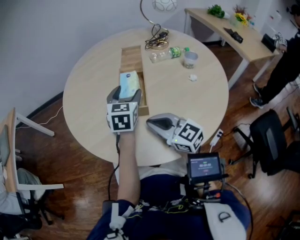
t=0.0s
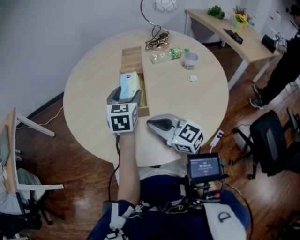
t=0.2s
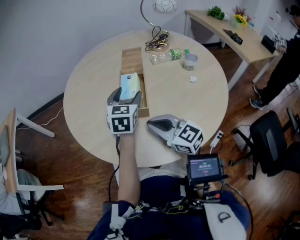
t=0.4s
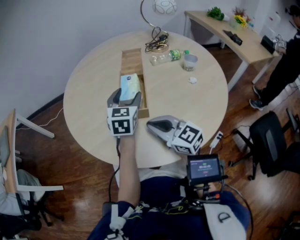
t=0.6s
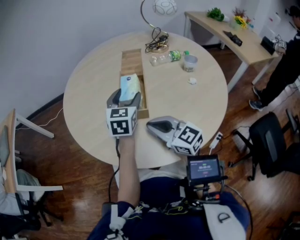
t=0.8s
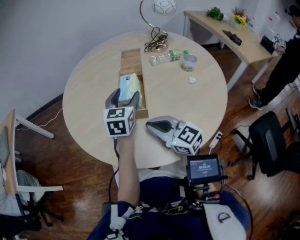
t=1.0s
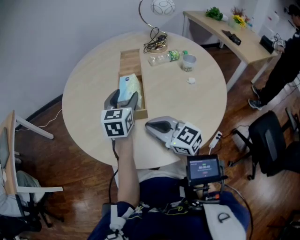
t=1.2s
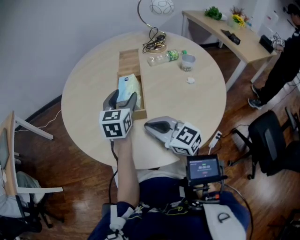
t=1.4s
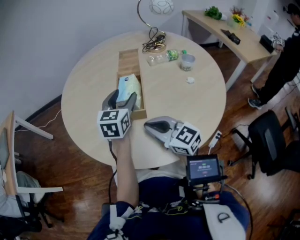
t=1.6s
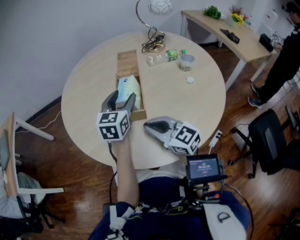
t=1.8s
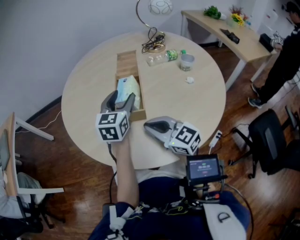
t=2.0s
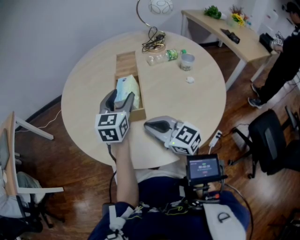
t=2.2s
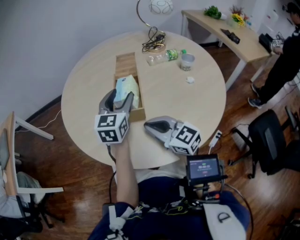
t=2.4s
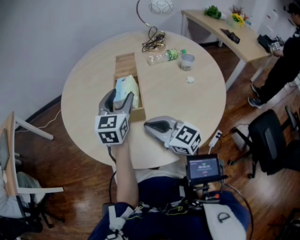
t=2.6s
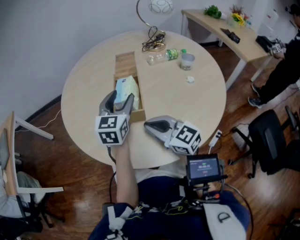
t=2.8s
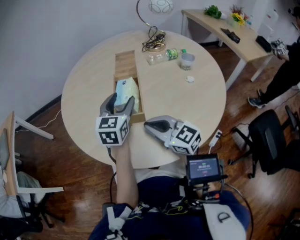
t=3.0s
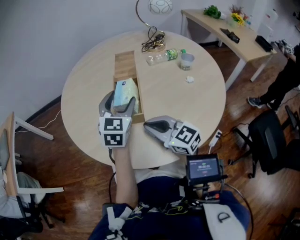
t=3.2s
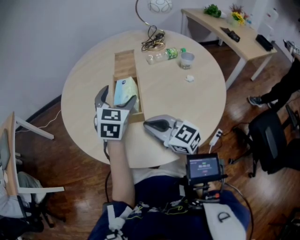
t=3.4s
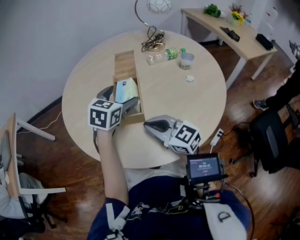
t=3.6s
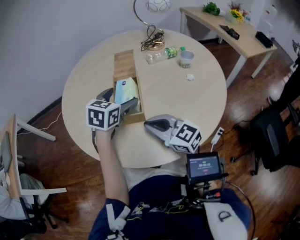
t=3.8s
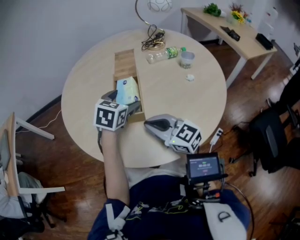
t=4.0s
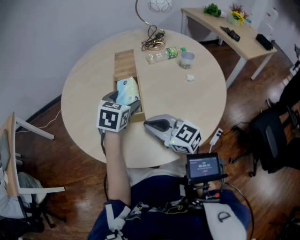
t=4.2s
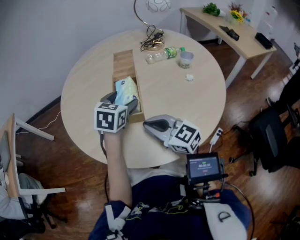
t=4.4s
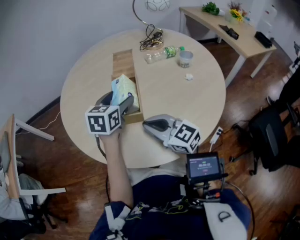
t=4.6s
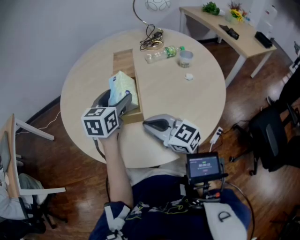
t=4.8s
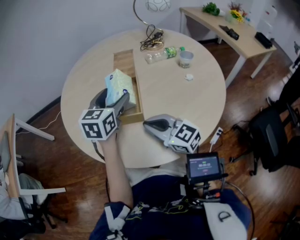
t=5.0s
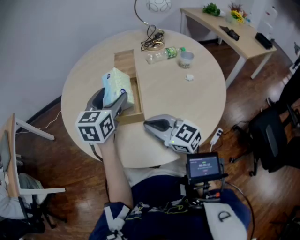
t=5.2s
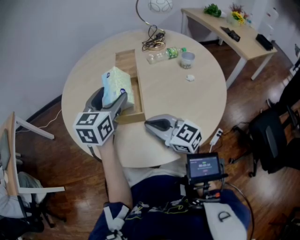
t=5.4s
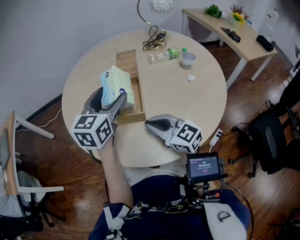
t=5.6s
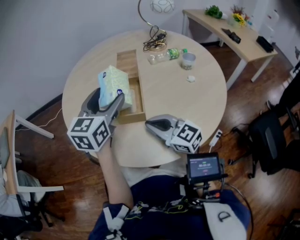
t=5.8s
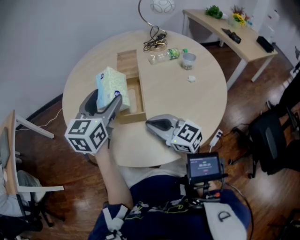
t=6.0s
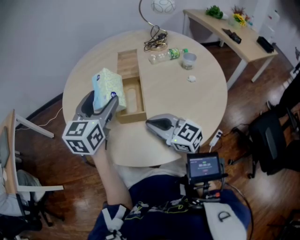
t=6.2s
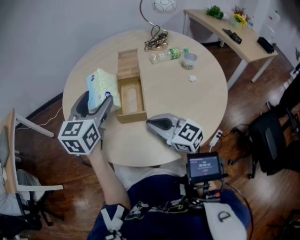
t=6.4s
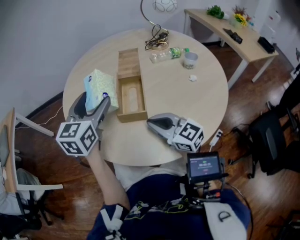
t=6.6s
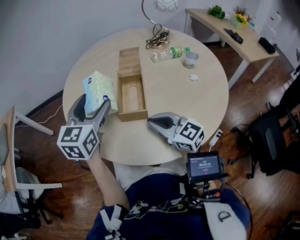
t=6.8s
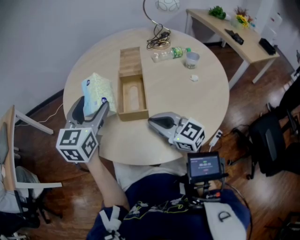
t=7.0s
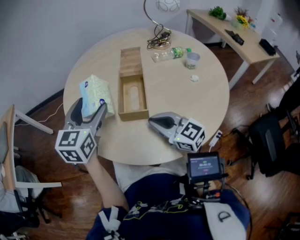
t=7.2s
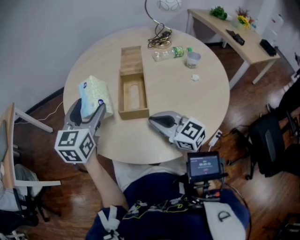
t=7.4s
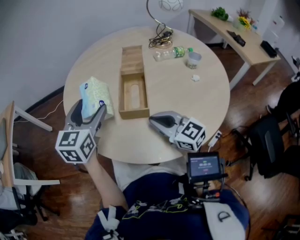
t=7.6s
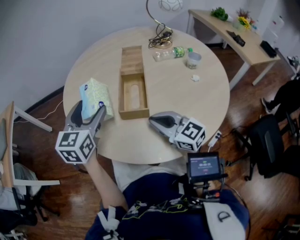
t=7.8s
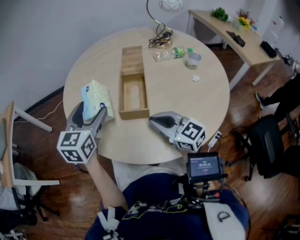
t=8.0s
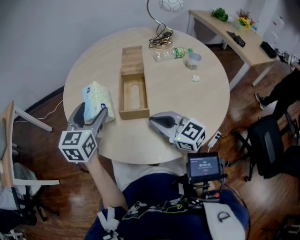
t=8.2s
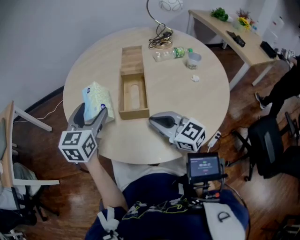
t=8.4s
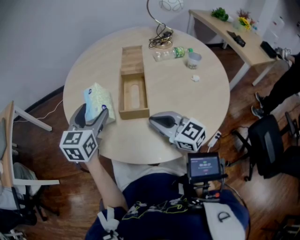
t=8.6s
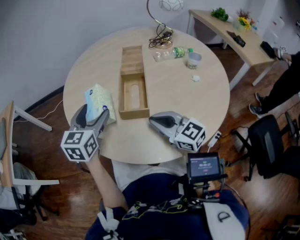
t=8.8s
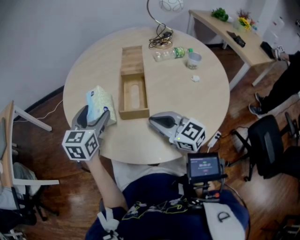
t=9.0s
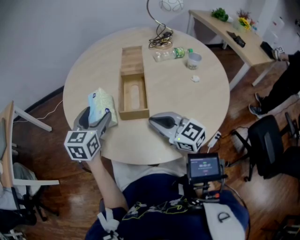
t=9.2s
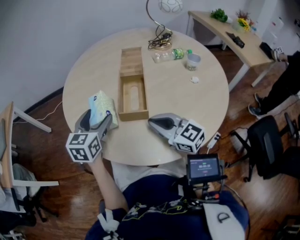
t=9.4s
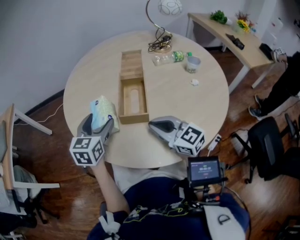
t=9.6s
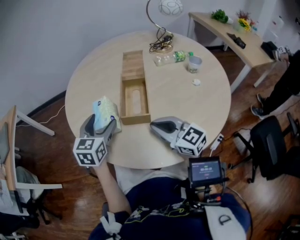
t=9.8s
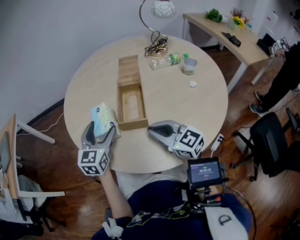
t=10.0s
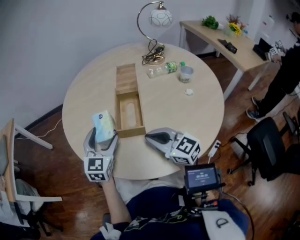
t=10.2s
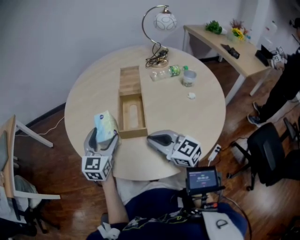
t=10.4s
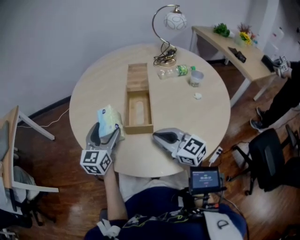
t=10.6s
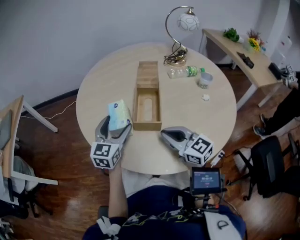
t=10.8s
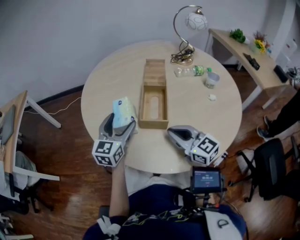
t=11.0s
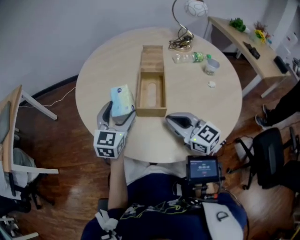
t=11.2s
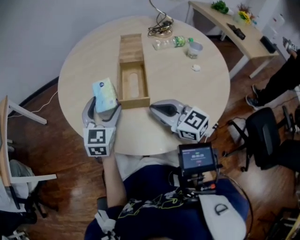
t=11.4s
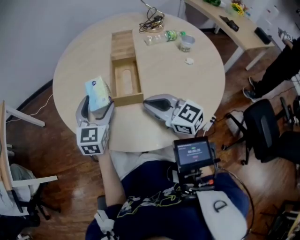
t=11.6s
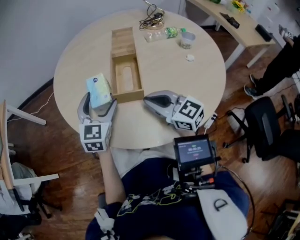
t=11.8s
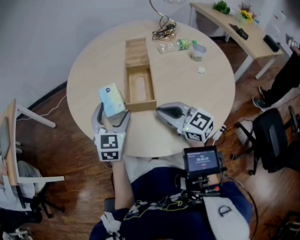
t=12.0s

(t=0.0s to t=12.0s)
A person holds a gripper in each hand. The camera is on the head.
t=0.0s - t=3.0s: The grippers make only small movements.
t=3.0s - t=4.4s: The left gripper turns by roughly 20 degrees.
t=4.4s - t=6.0s: The left gripper goes approximately 15 cm upward and to the left, and swivels roughly 20 degrees.
t=6.0s - t=7.6s: The left gripper heads to the left, covering about 10 cm.
t=7.6s - t=9.0s: The left gripper shifts some 5 cm downward.
t=9.0s - t=10.4s: The grippers stay close to where they were, moving slightly.
t=10.4s - t=12.0s: There are only small adjustments of the grippers.

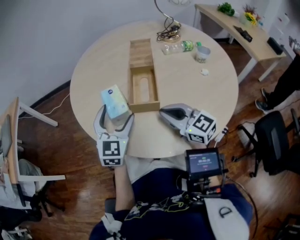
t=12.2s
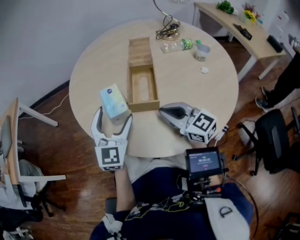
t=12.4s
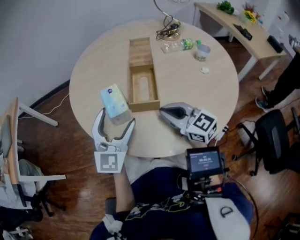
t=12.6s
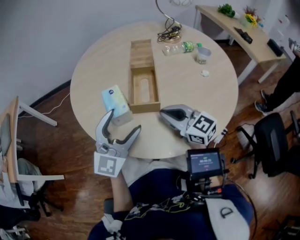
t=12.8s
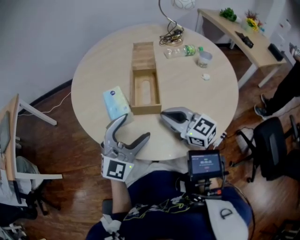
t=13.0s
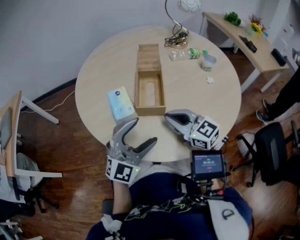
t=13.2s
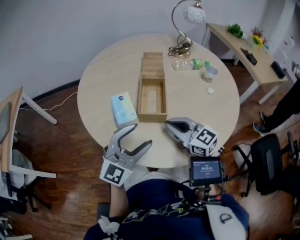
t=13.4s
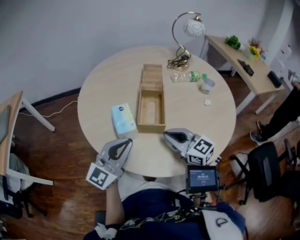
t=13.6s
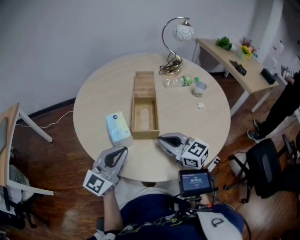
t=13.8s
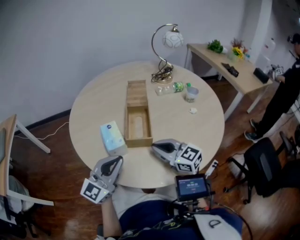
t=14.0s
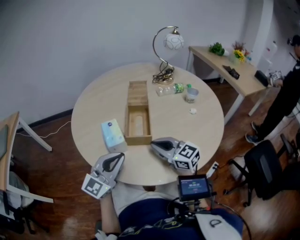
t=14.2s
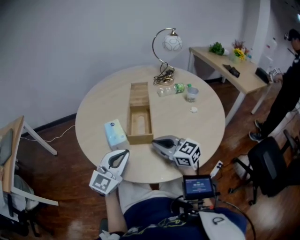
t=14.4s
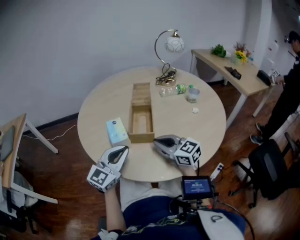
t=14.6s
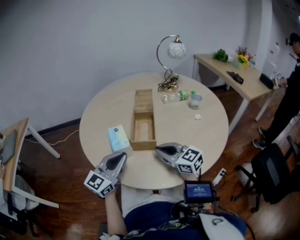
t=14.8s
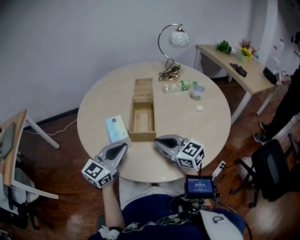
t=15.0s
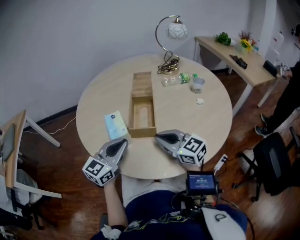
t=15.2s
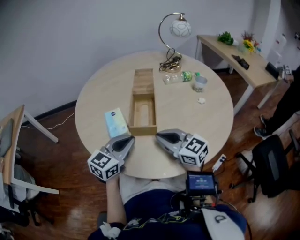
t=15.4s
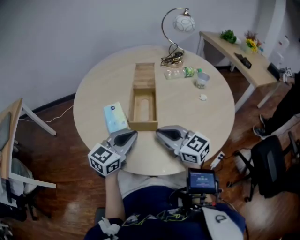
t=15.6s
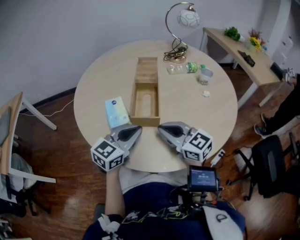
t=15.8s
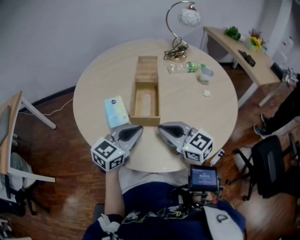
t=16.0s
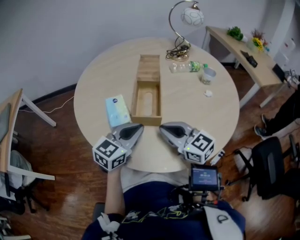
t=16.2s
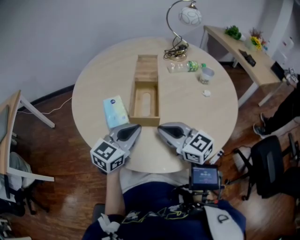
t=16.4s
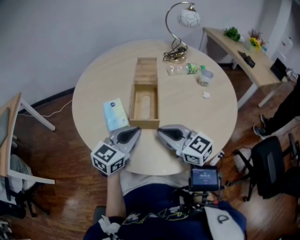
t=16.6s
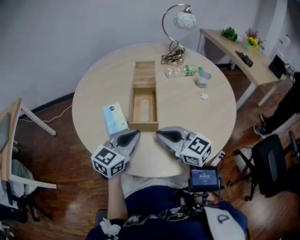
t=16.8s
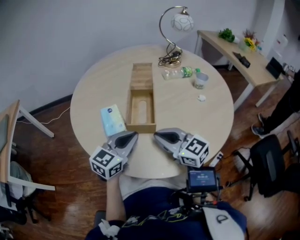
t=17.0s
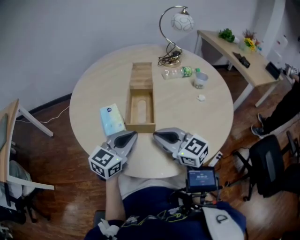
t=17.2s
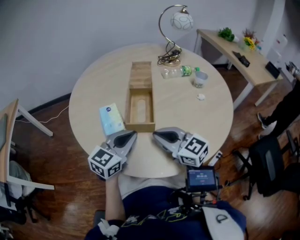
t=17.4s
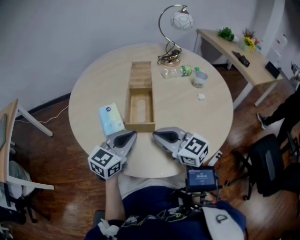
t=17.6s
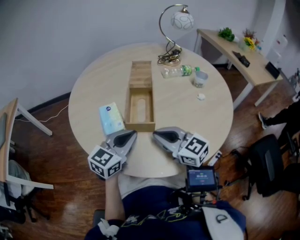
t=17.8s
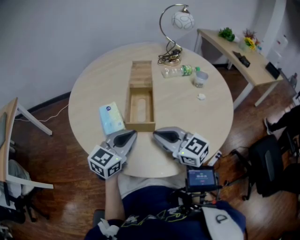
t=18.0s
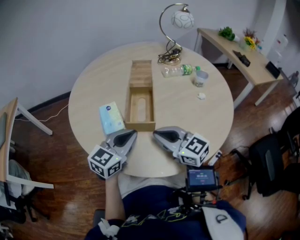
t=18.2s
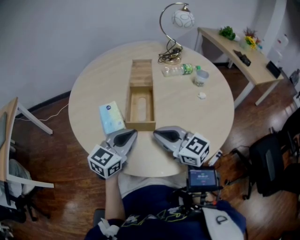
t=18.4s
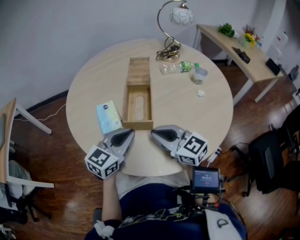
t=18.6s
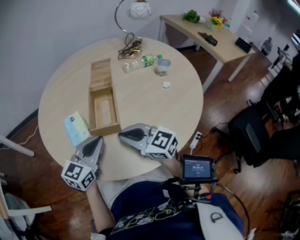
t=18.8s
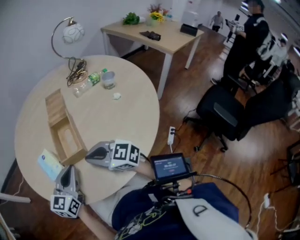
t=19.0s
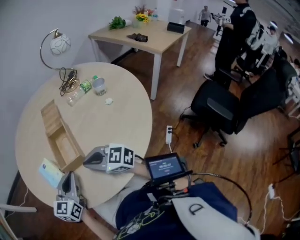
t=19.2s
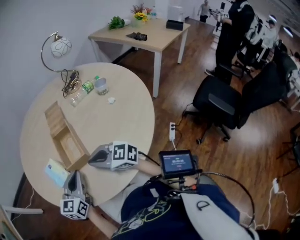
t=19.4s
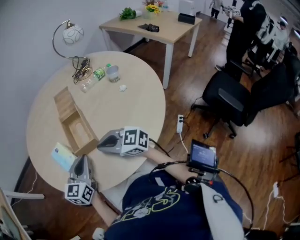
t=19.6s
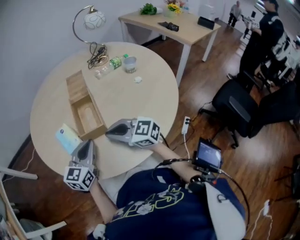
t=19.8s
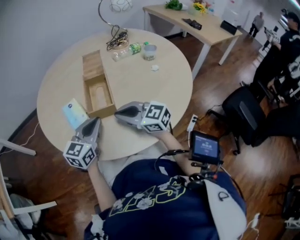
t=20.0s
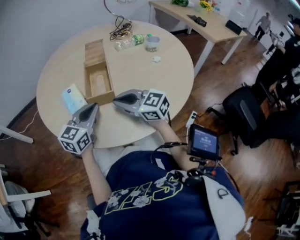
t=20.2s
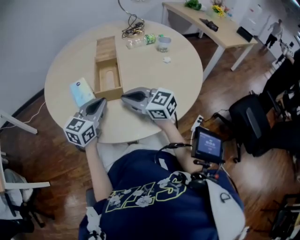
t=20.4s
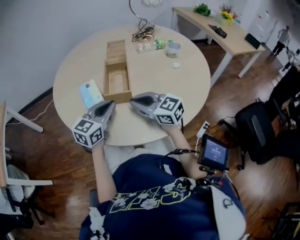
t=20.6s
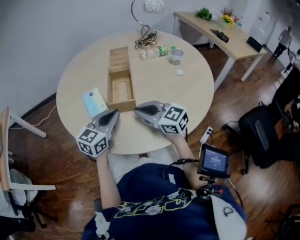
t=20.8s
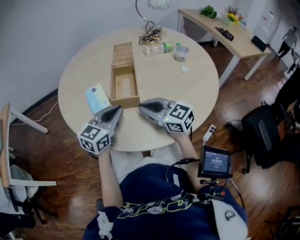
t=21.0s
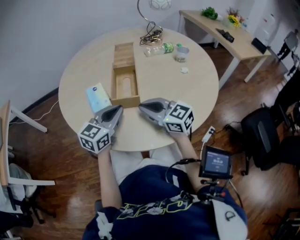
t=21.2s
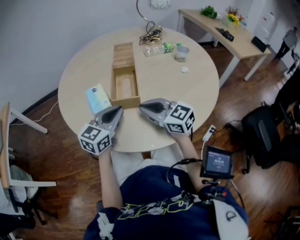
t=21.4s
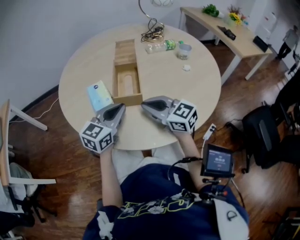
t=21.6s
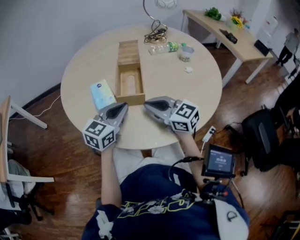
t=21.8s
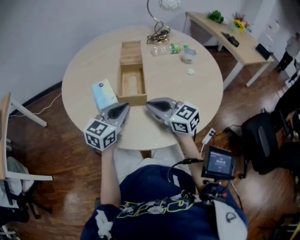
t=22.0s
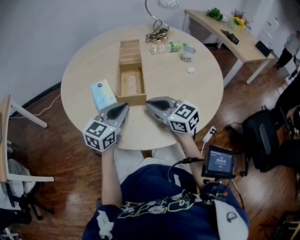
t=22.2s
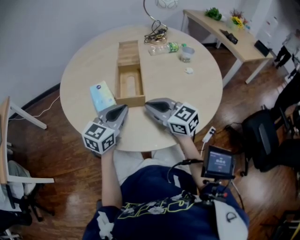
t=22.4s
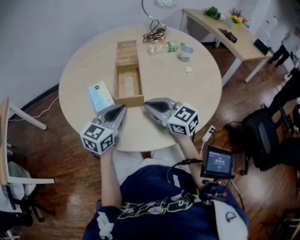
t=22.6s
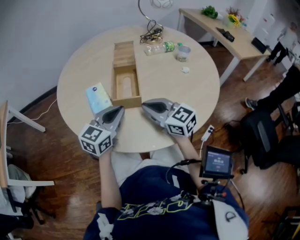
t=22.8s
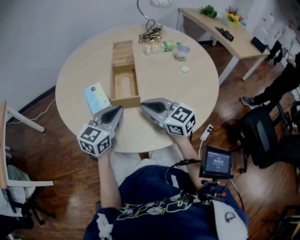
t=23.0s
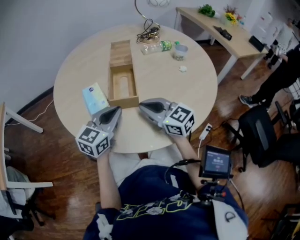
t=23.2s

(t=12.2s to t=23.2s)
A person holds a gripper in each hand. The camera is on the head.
t=12.2s - t=13.8s: The left gripper travels backward by roughly 10 cm, changes its angle by about 40 degrees, and closes.
t=13.8s - t=15.4s: The left gripper moves downward, about 5 cm, and swivels approximately 20 degrees.
t=15.4s - t=17.0s: The grippers stay close to where they were, moving slightly.
t=17.0s - t=18.4s: Both grippers stay about where they are.
t=18.4s - t=20.0s: The grippers move only a little.
t=20.0s - t=21.6s: Neither gripper changes place.
t=21.6s - t=23.2s: The grippers make only small movements.

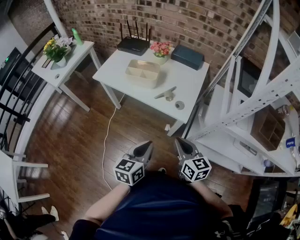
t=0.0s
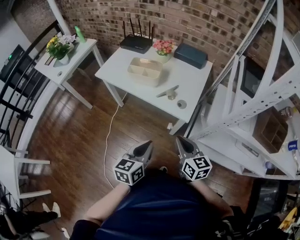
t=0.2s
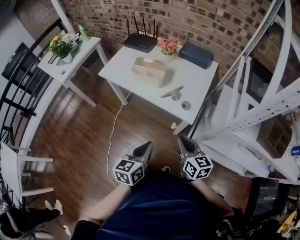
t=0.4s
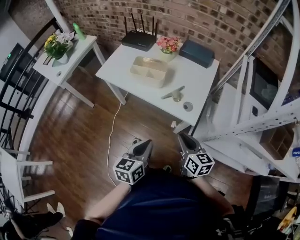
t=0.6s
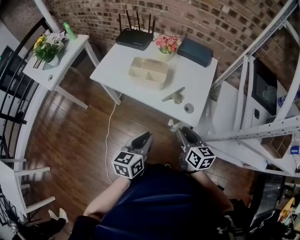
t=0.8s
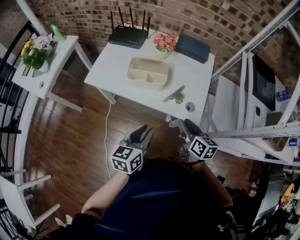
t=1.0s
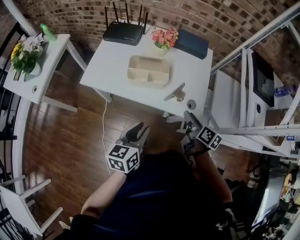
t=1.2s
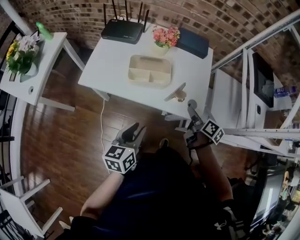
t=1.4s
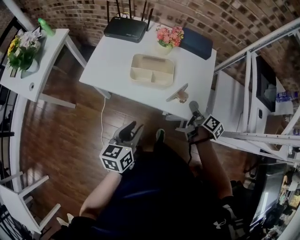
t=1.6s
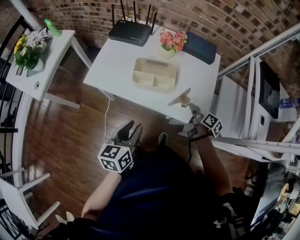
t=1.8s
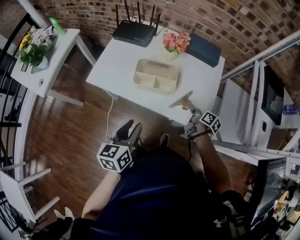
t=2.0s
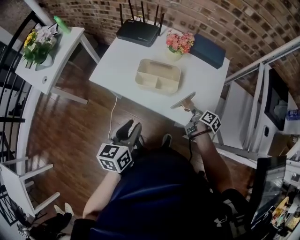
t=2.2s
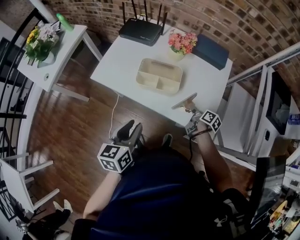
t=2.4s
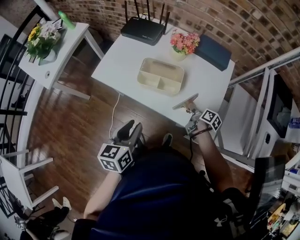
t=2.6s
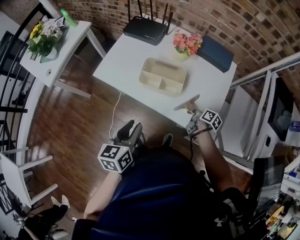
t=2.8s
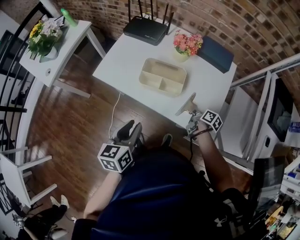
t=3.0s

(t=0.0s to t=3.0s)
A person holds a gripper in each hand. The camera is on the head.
t=0.0s - t=1.6s: The right gripper heads forward and downward, covering some 30 cm, rotates around the line of its fingers by about 50 degrees, clockwise from behind, and opens its fingers, while the left gripper heads forward and to the left, covering approximately 25 cm, and opens up.
t=1.6s - t=3.0s: The right gripper shifts about 15 cm downward and forward, and closes its fingers.
